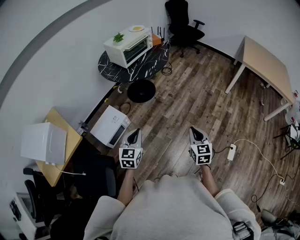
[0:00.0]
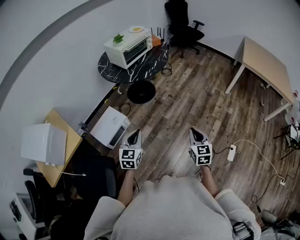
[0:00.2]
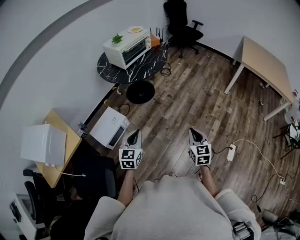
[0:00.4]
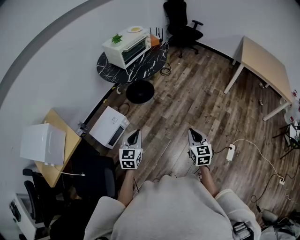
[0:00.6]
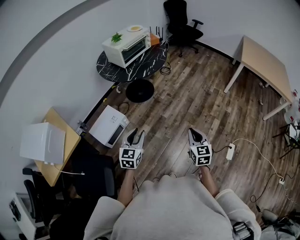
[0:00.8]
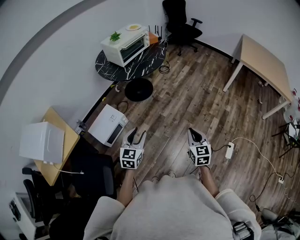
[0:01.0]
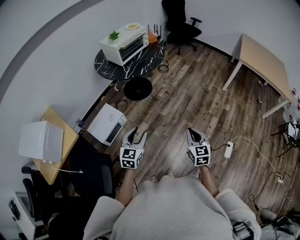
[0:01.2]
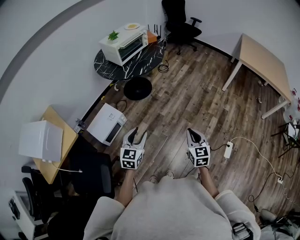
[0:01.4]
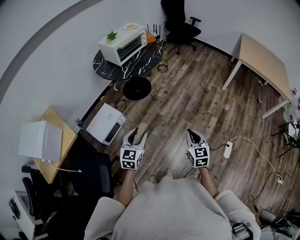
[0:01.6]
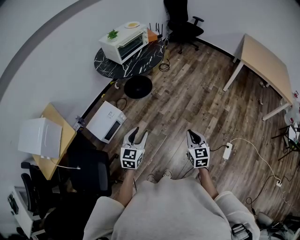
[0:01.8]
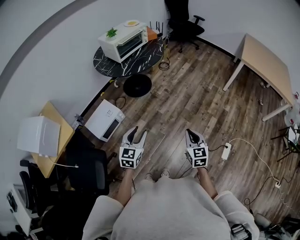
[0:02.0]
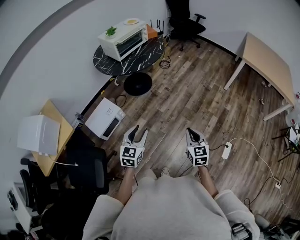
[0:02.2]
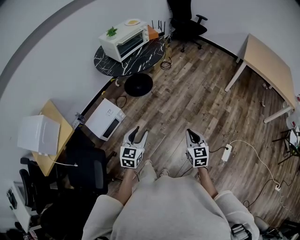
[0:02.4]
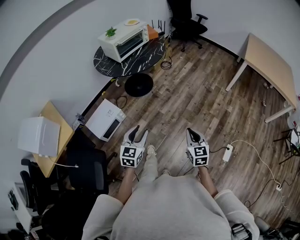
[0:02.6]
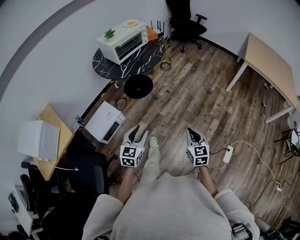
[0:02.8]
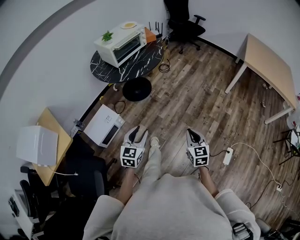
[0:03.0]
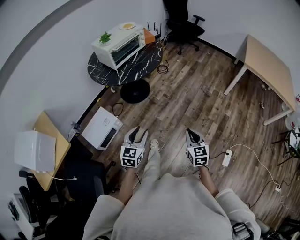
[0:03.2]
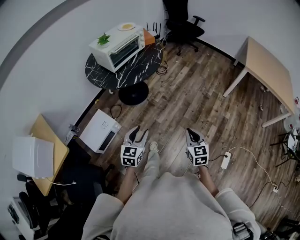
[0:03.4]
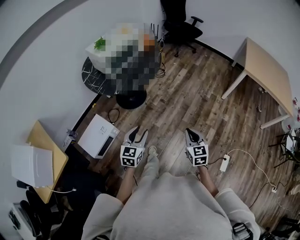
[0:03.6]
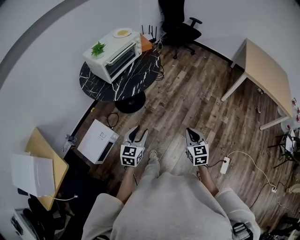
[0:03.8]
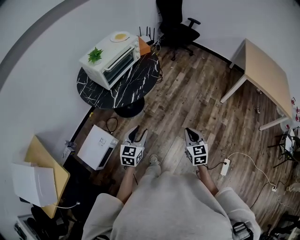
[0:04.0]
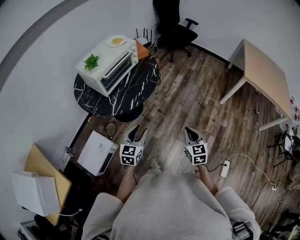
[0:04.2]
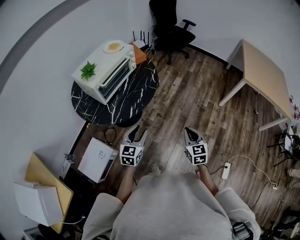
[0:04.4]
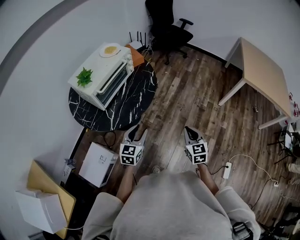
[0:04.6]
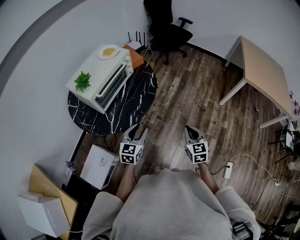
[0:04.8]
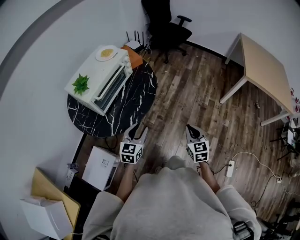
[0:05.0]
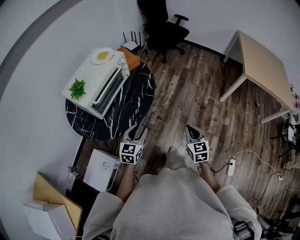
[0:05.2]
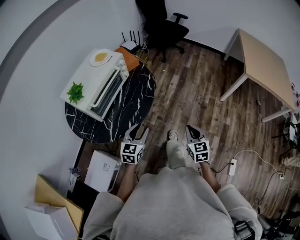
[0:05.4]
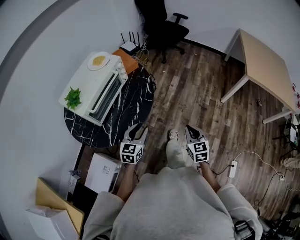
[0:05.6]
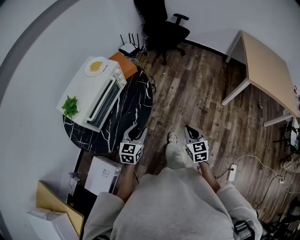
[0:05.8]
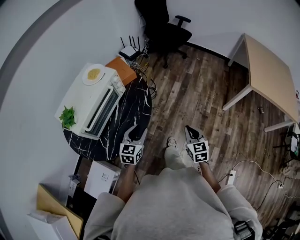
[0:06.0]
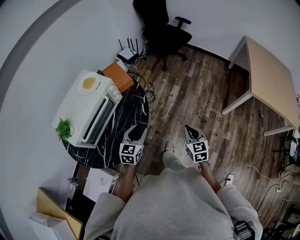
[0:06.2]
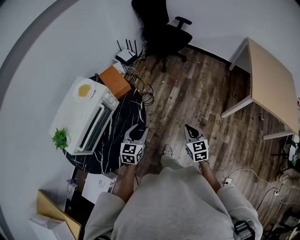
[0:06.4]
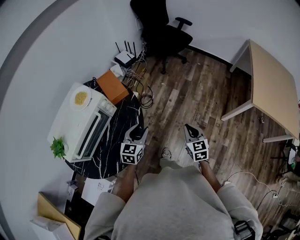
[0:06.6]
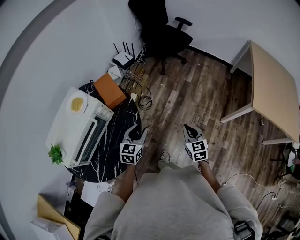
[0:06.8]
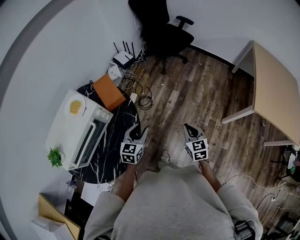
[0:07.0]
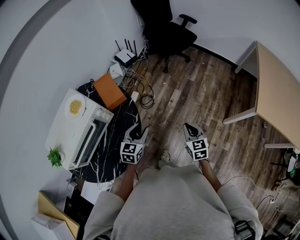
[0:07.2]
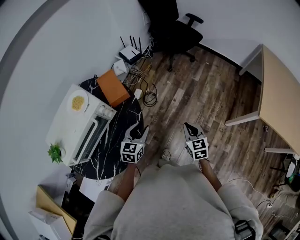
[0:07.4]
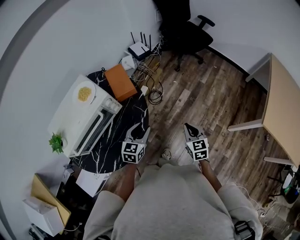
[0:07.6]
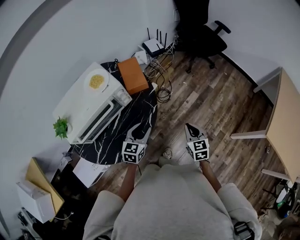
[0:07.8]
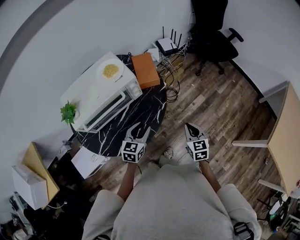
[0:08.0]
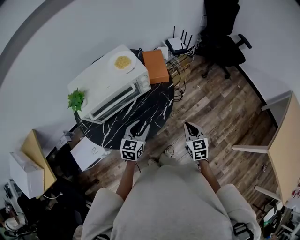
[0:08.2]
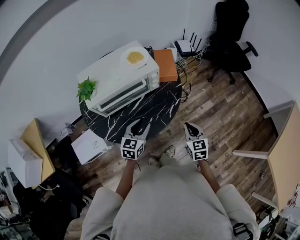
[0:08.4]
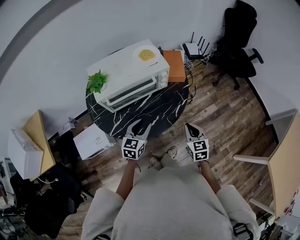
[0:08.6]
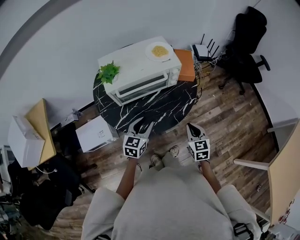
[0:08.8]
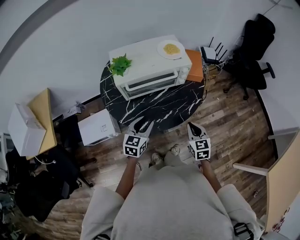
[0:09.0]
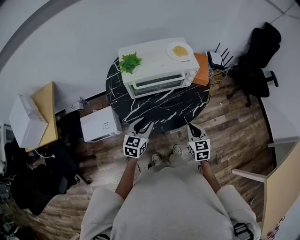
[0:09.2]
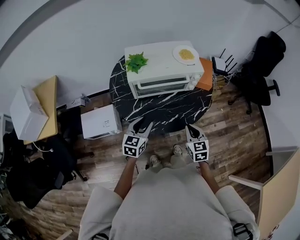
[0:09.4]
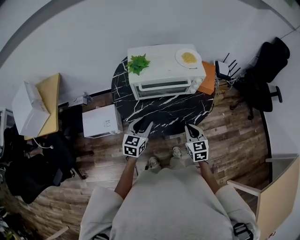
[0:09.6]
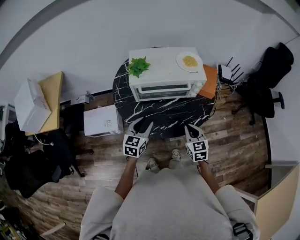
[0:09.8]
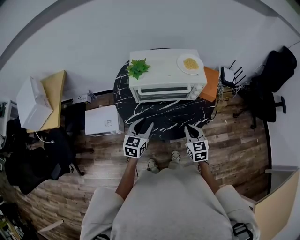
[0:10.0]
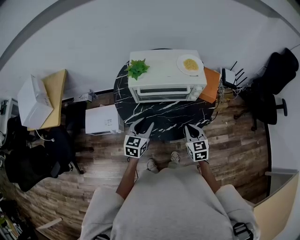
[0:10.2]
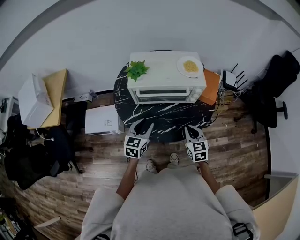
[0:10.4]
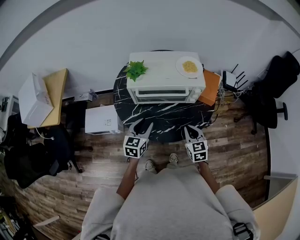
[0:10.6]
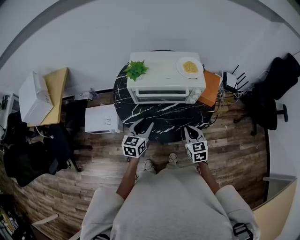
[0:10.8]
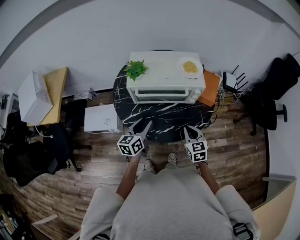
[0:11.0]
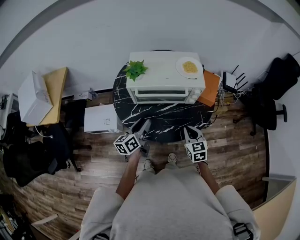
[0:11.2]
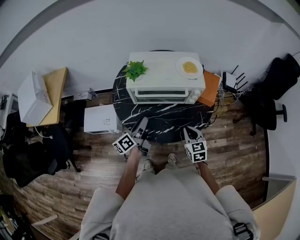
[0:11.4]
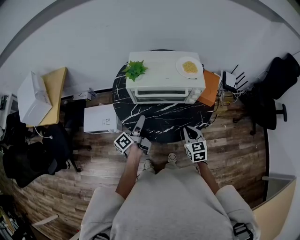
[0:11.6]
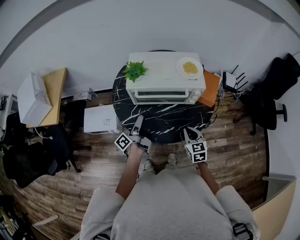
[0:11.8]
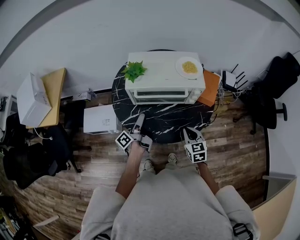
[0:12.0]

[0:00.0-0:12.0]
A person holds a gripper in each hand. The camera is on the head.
0:00.0 to 0:01.6: The left gripper shifts approximately 5 cm to the right, and opens its fingers.
0:01.6 to 0:03.0: The two grippers go some 10 cm forward.
0:03.0 to 0:04.4: The grippers both shift forward by roughly 35 cm.
0:04.4 to 0:06.0: Both grippers travel together forward, about 25 cm.
0:06.0 to 0:07.6: Both grippers move forward, roughly 20 cm.
0:07.6 to 0:09.0: The right gripper moves approximately 25 cm, and swivels about 30 degrees. Meanwhile the left gripper shifts by about 30 cm, and changes its angle by about 30 degrees.
0:09.0 to 0:10.4: The right gripper shifts about 10 cm forward.
0:10.4 to 0:12.0: The left gripper shifts by roughly 5 cm, and twists about 80 degrees counterclockwise, seen from behind.

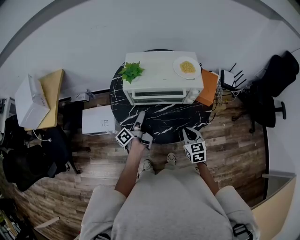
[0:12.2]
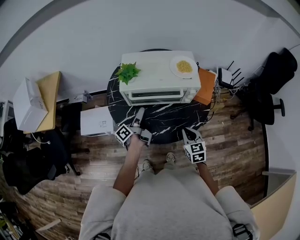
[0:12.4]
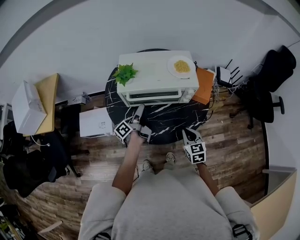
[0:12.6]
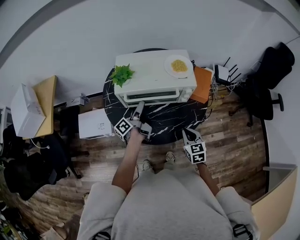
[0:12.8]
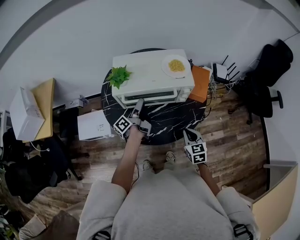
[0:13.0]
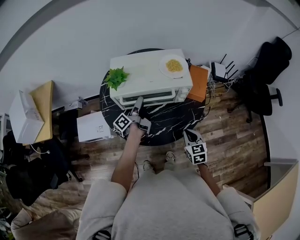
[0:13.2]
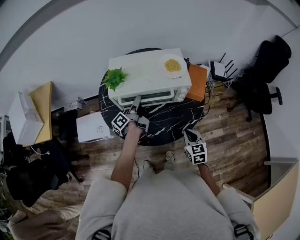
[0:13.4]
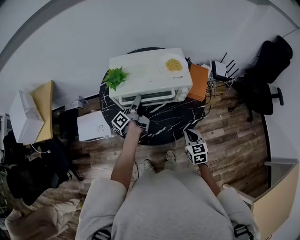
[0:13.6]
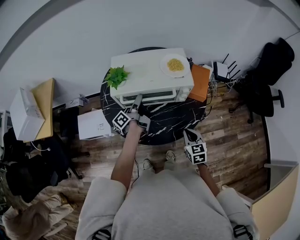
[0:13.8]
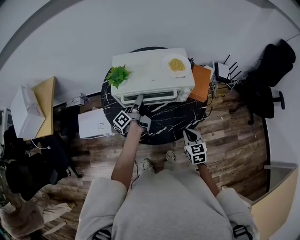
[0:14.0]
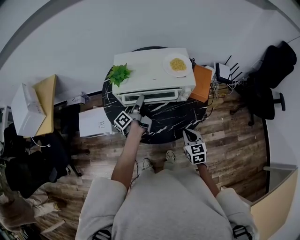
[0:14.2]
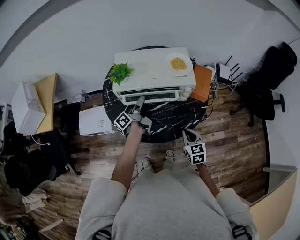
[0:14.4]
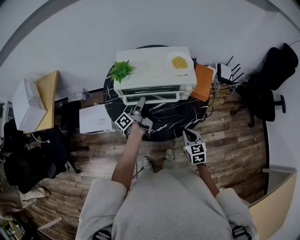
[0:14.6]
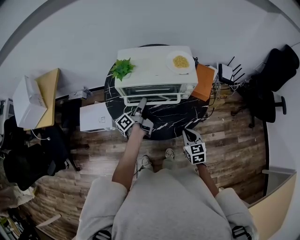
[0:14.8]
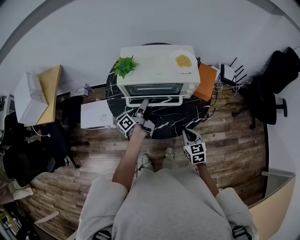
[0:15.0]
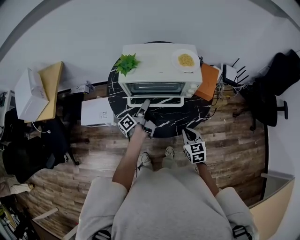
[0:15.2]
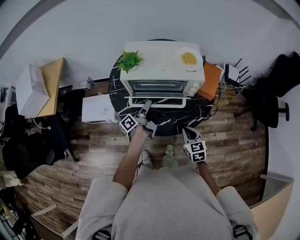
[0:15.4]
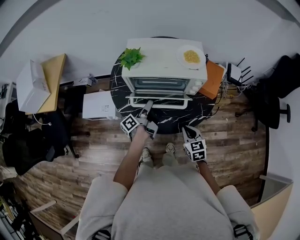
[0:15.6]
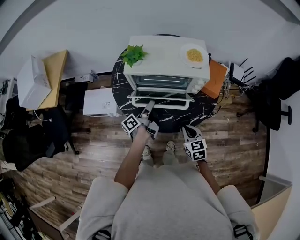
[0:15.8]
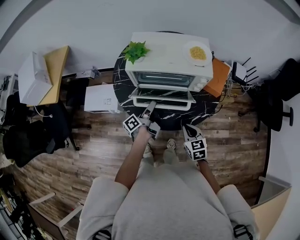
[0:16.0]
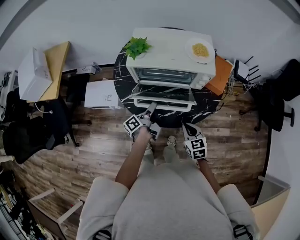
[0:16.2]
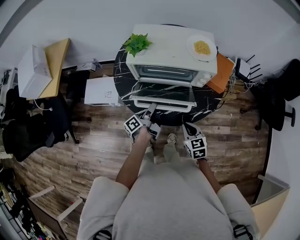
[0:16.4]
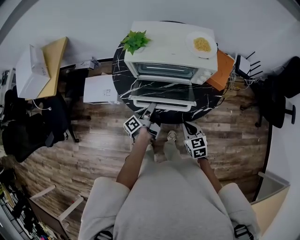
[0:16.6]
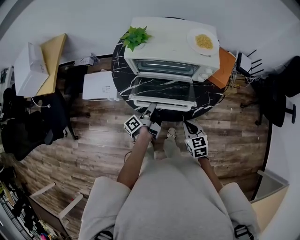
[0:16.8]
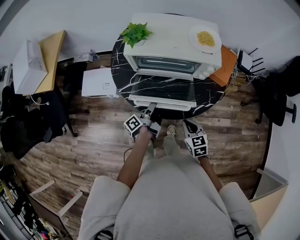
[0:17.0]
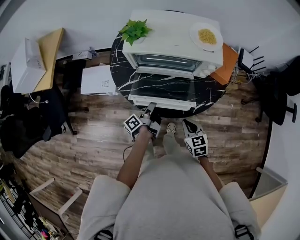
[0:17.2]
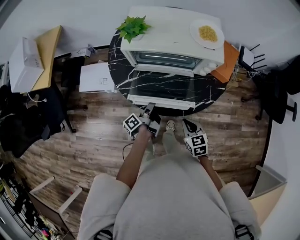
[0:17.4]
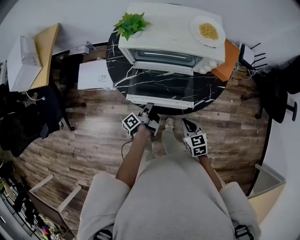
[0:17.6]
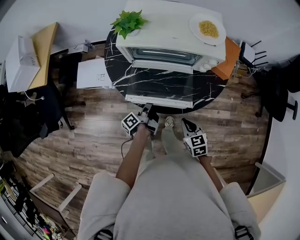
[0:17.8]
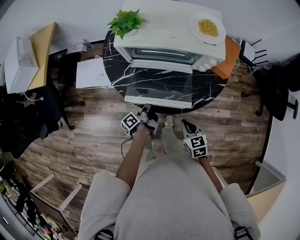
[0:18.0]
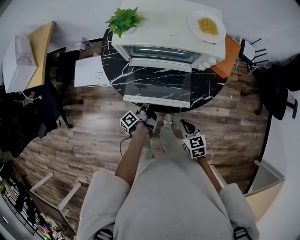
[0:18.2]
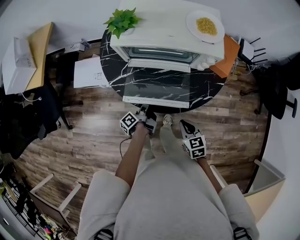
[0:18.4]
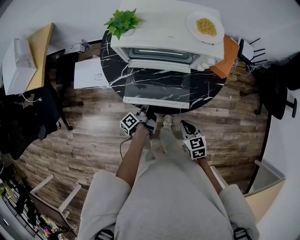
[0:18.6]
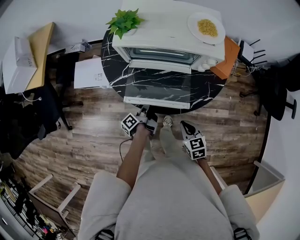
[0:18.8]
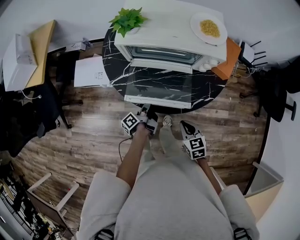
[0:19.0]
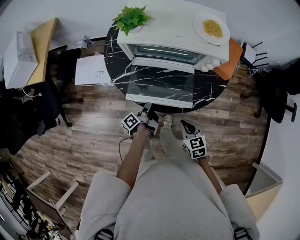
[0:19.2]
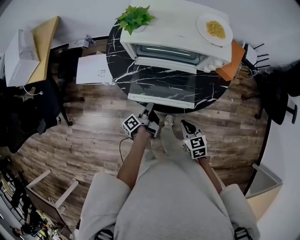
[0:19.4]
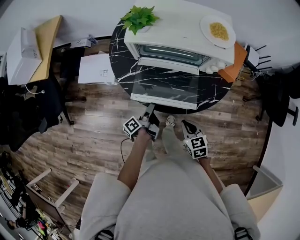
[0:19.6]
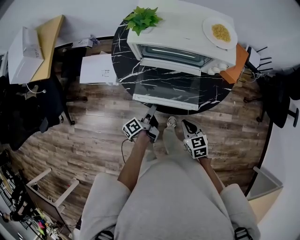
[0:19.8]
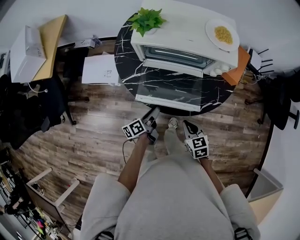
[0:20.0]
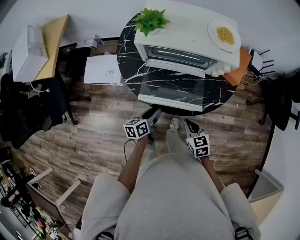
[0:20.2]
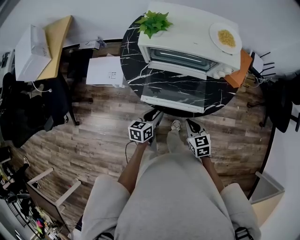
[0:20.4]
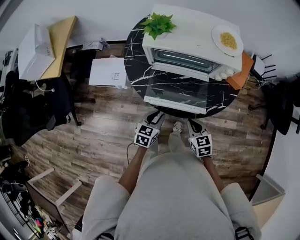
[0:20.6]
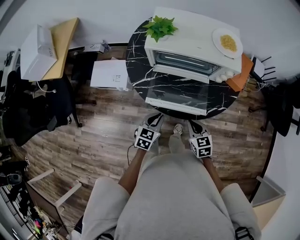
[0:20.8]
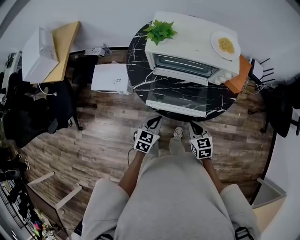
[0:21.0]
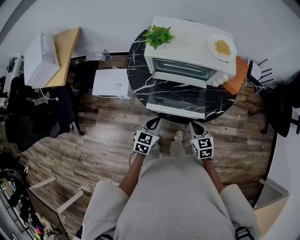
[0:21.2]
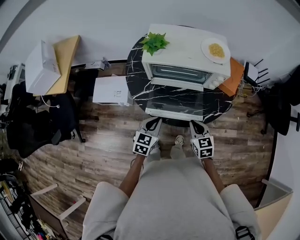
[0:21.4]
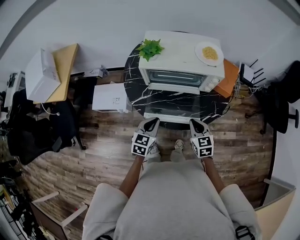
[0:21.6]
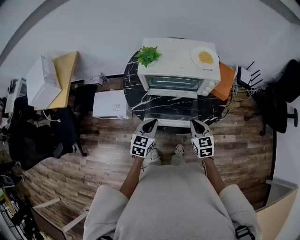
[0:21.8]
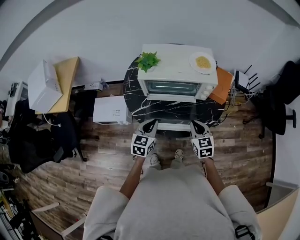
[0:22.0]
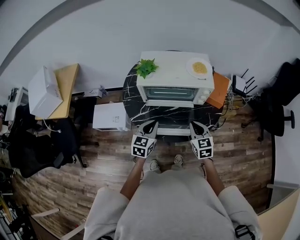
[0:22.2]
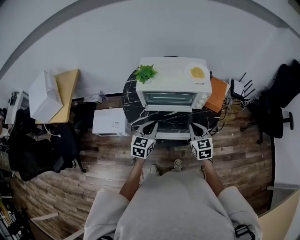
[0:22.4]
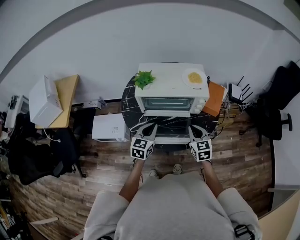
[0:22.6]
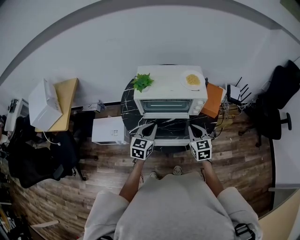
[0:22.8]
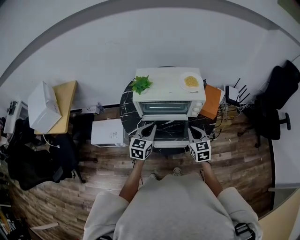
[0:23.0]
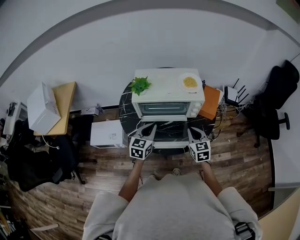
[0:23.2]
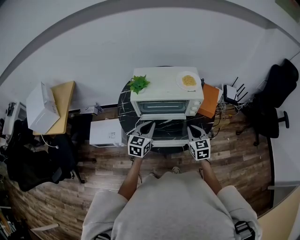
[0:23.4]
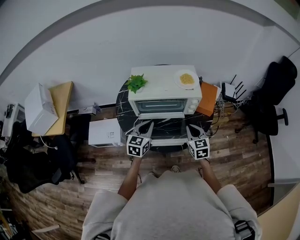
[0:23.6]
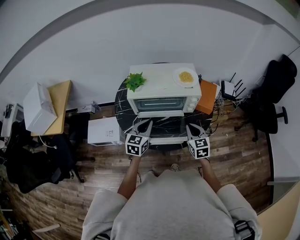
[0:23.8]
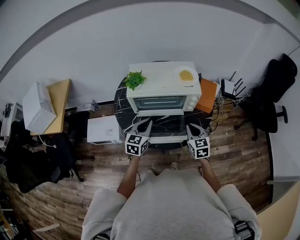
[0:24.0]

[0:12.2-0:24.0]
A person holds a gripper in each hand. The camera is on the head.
0:12.2 to 0:13.6: The left gripper heads forward, covering some 10 cm, and closes its fingers; the right gripper heads to the right, covering roughly 5 cm.
0:13.6 to 0:15.2: The left gripper heads backward, covering roughly 5 cm.
0:15.2 to 0:16.6: The right gripper shifts by some 5 cm. Meanwhile the left gripper moves backward and downward, roughly 10 cm.
0:16.6 to 0:18.2: The left gripper shifts about 10 cm downward. The right gripper ends up roughly 5 cm from where it was.
0:18.2 to 0:19.6: The grippers move only a little.
0:19.6 to 0:21.0: The left gripper goes some 10 cm upward, twists some 90 degrees clockwise, seen from behind, and closes its fingers.
0:21.0 to 0:22.6: Both grippers move upward and forward, about 15 cm. The right gripper rotates some 20 degrees.
0:22.6 to 0:24.0: The grippers stay close to where they were, moving slightly.
